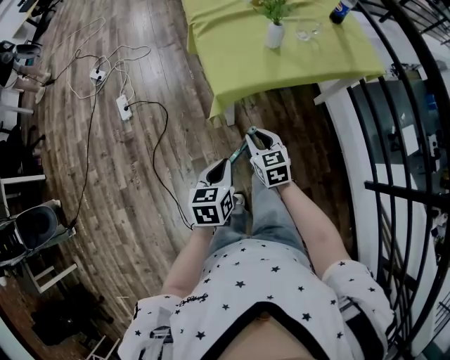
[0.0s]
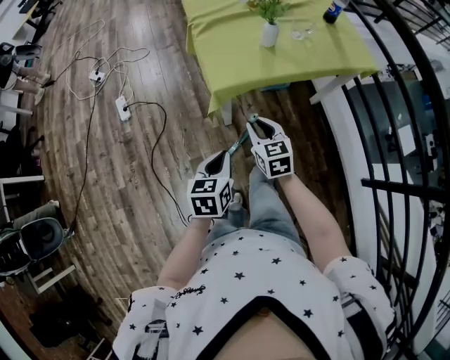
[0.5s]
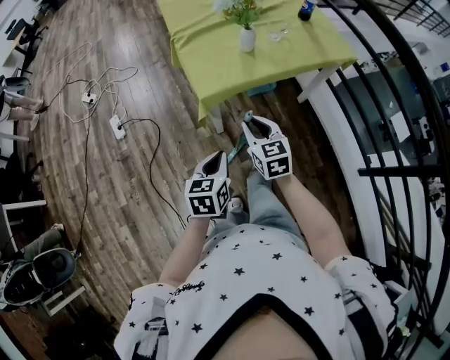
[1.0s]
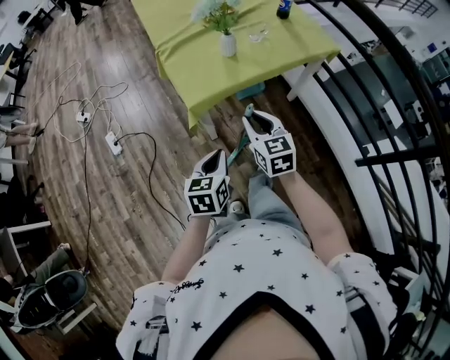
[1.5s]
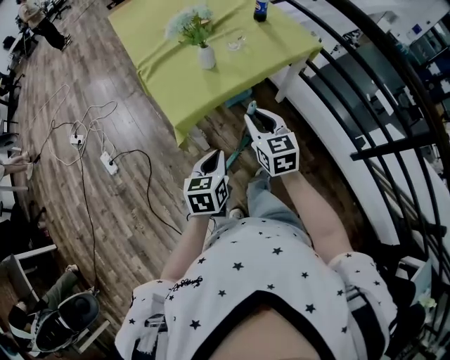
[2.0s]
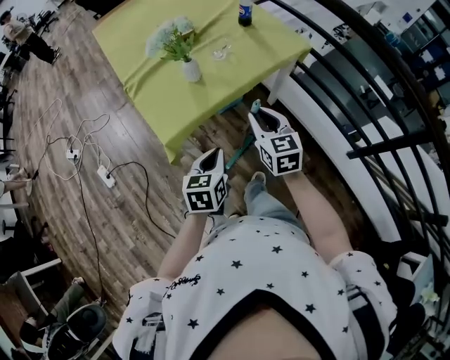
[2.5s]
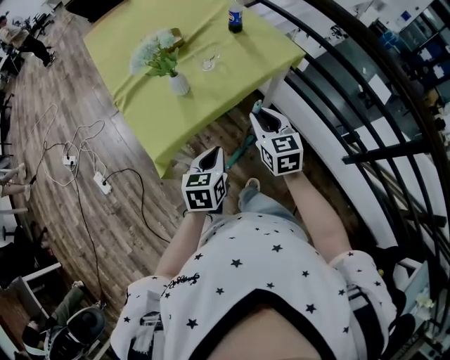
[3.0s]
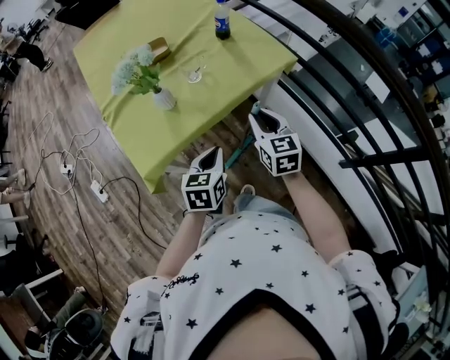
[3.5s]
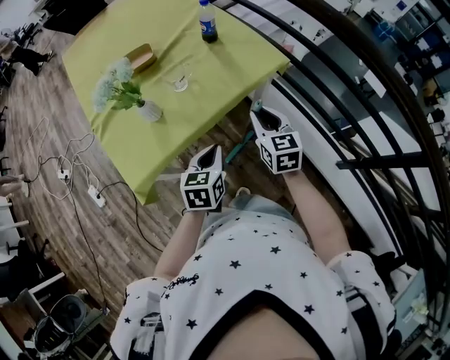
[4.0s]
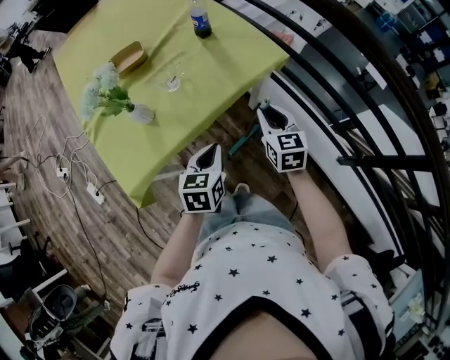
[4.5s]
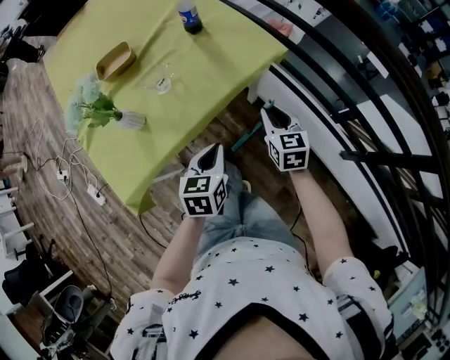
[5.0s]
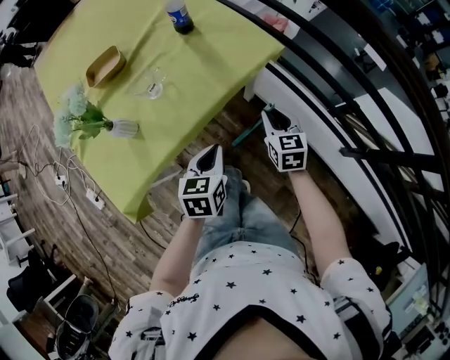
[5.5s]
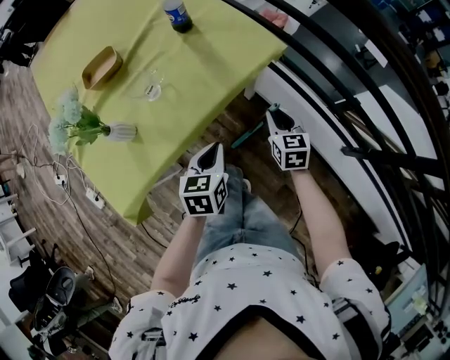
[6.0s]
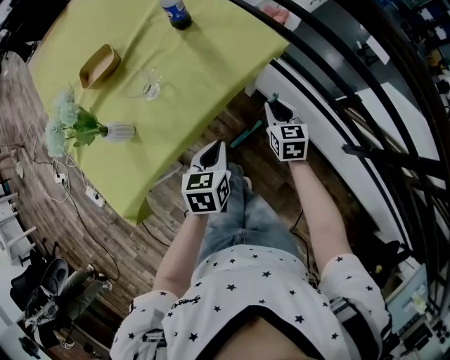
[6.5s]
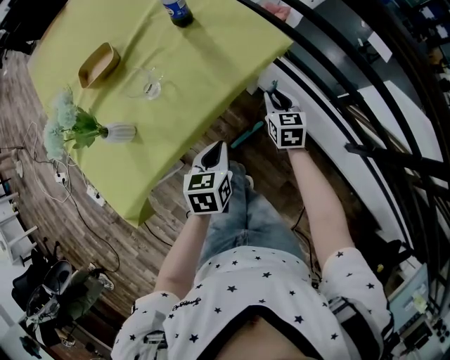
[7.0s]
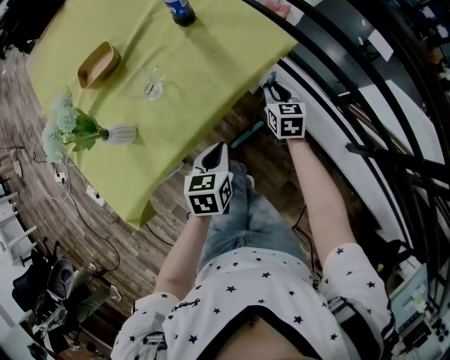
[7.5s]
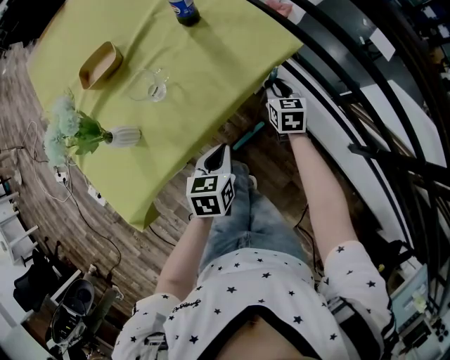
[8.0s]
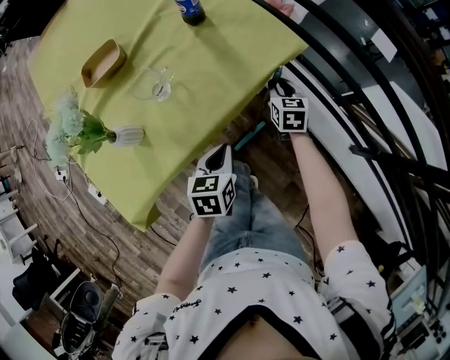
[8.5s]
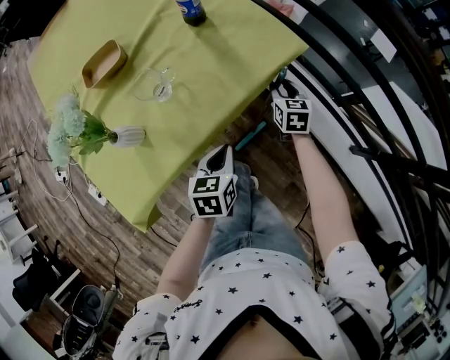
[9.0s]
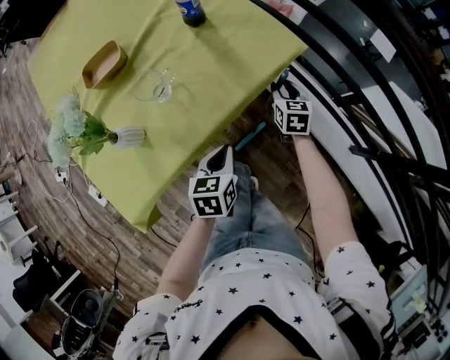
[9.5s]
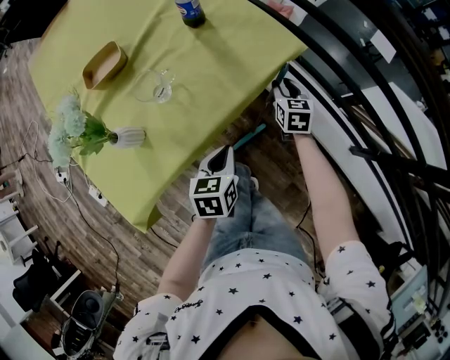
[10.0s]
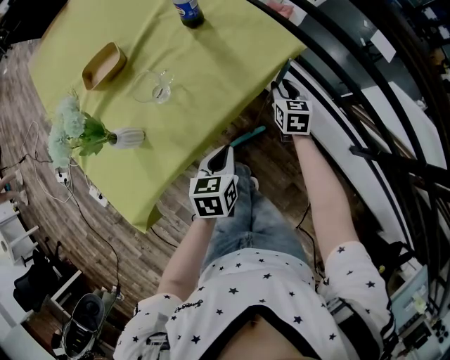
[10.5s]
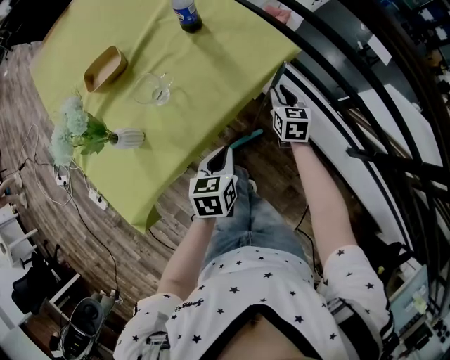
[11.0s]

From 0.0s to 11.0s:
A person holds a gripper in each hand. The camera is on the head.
From 0.0s to 2.0s: The right gripper travels upward and to the right by some 20 cm, and swivels roughly 20 degrees; the left gripper is displaced to the right and upward by some 10 cm.
From 2.0s to 3.5s: Both grippers move forward and to the right, some 20 cm.
From 3.5s to 5.5s: The right gripper heads downward, to the right and forward, covering some 25 cm, while the left gripper goes roughly 15 cm forward, to the right and downward.
From 5.5s to 7.5s: The left gripper changes place by roughly 5 cm. The right gripper shifts roughly 10 cm forward and downward.
From 7.5s to 11.0s: The grippers make only small movements.

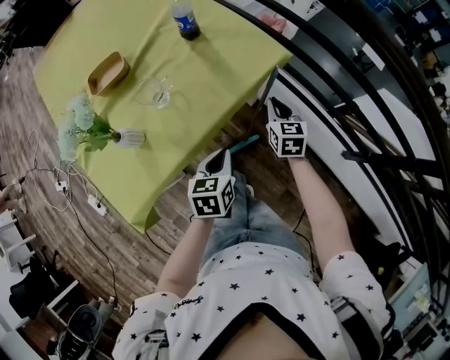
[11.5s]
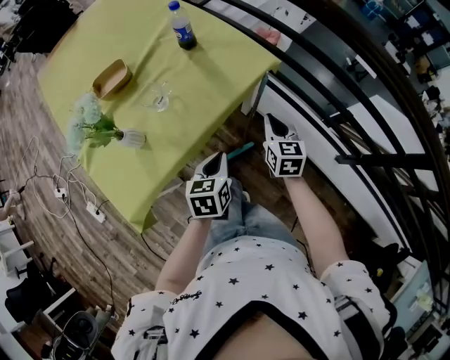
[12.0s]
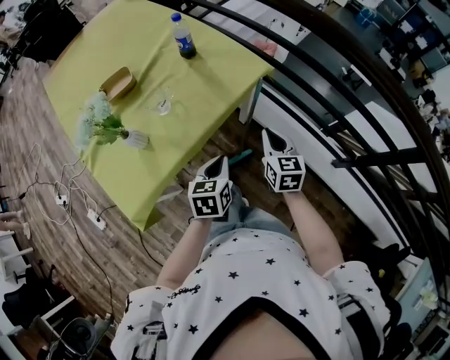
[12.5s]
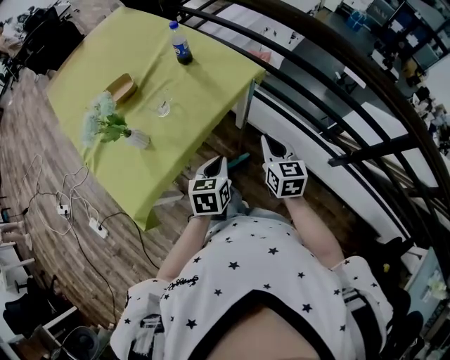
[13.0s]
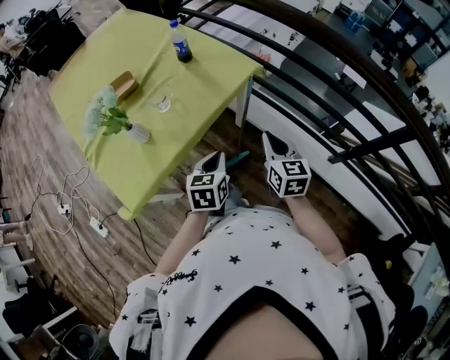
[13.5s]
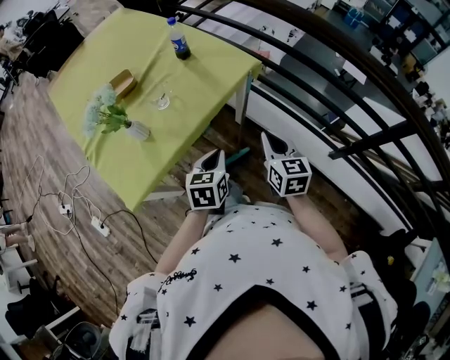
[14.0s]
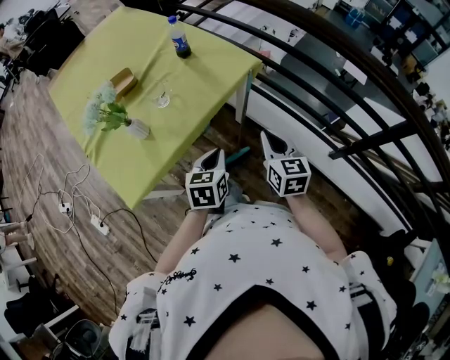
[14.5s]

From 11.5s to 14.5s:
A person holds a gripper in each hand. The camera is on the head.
From 11.5s to 13.0s: The left gripper shifts approximately 10 cm upward and backward. The right gripper travels backward and upward by roughly 20 cm.
From 13.0s to 14.5s: The grippers stay close to where they were, moving slightly.

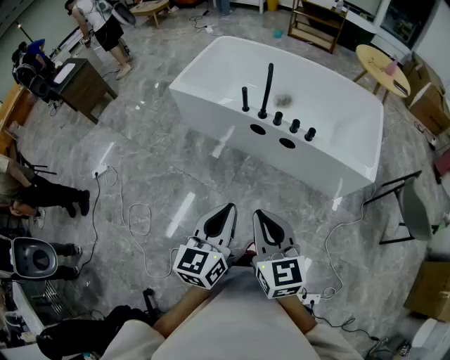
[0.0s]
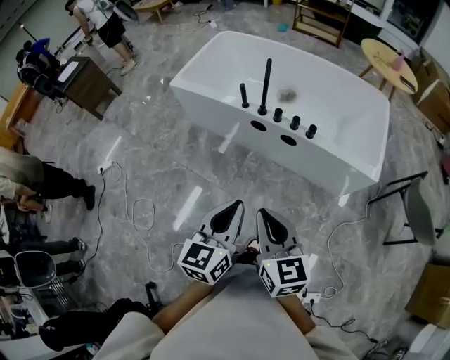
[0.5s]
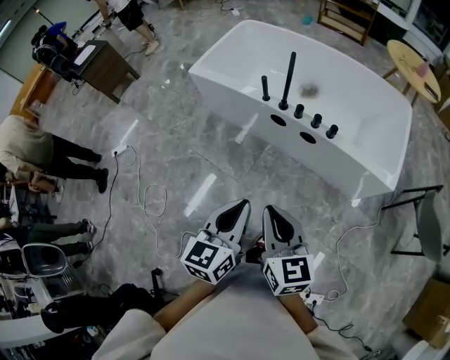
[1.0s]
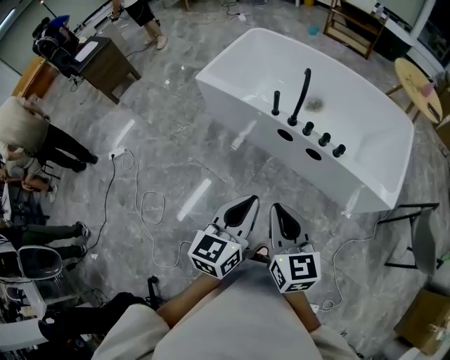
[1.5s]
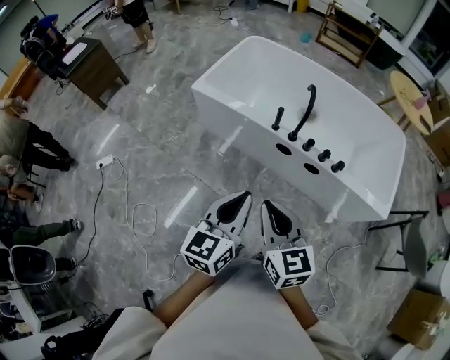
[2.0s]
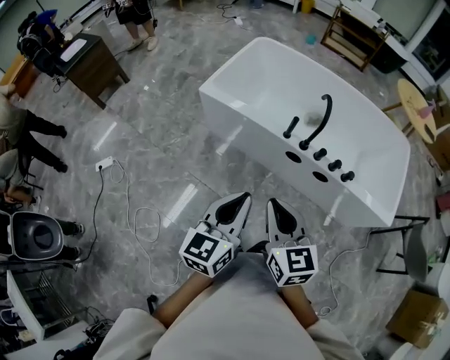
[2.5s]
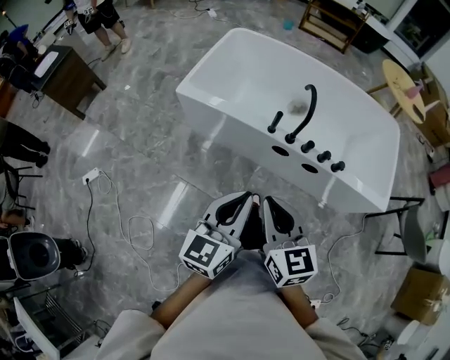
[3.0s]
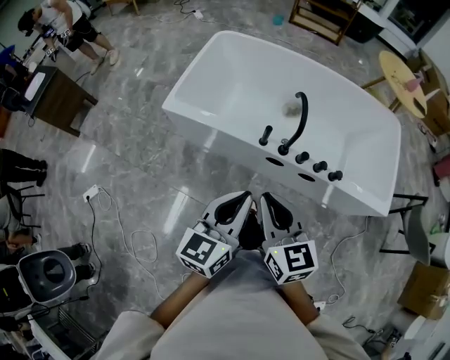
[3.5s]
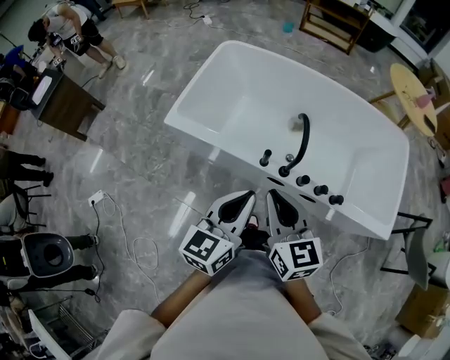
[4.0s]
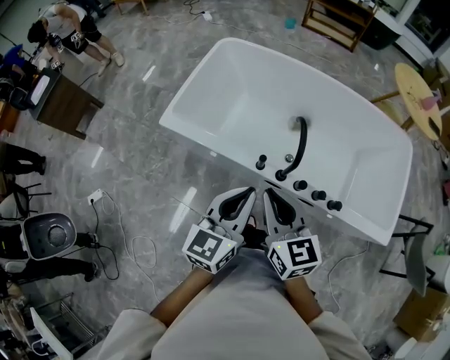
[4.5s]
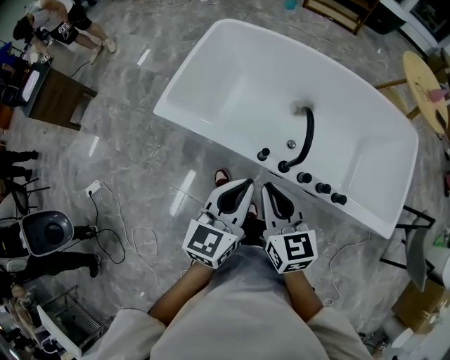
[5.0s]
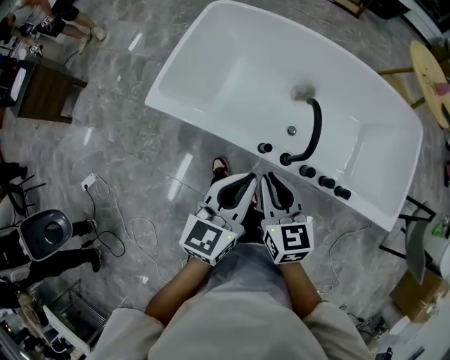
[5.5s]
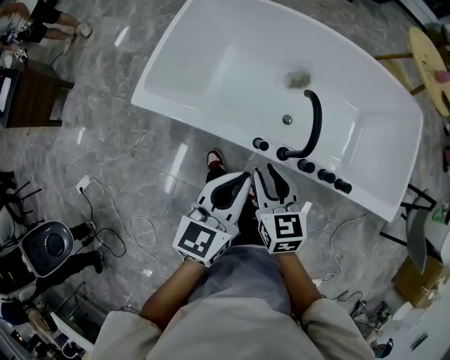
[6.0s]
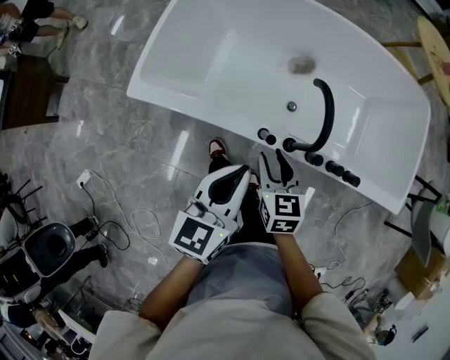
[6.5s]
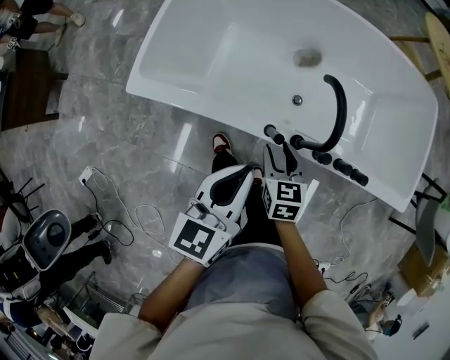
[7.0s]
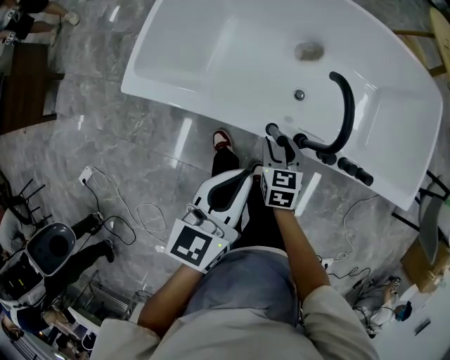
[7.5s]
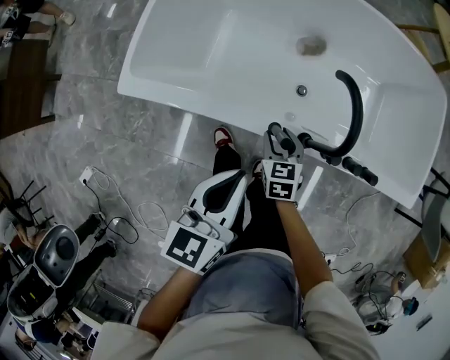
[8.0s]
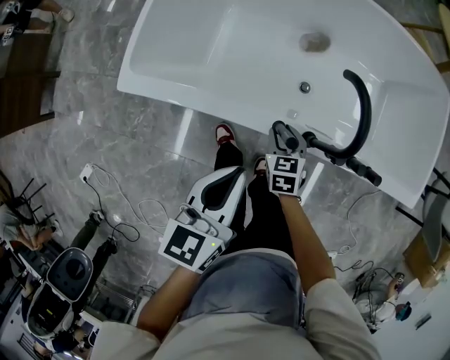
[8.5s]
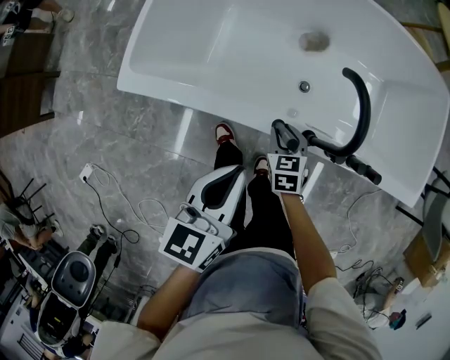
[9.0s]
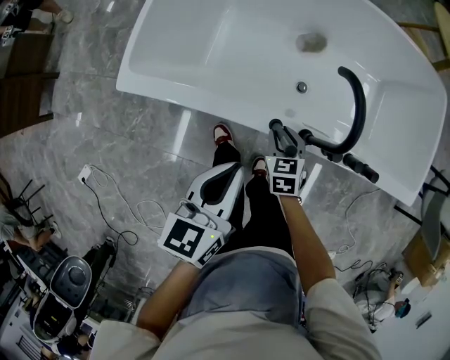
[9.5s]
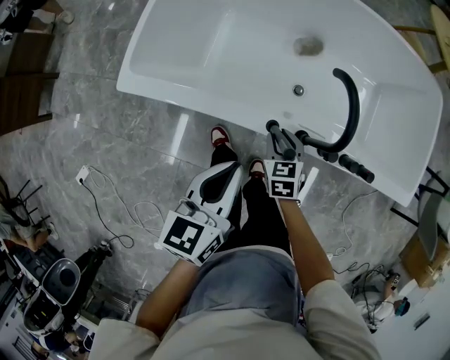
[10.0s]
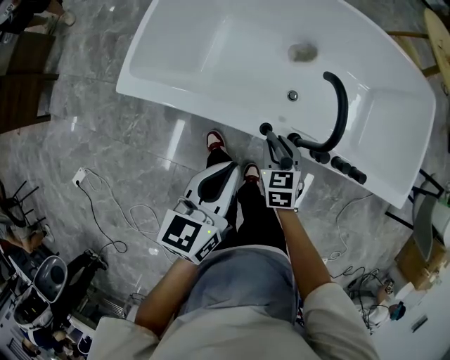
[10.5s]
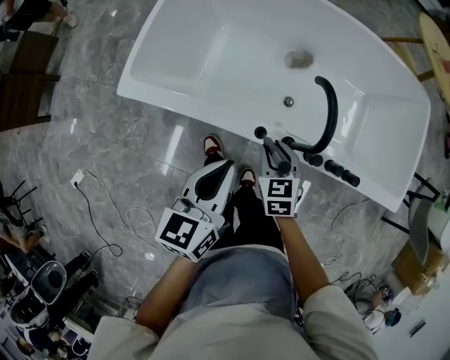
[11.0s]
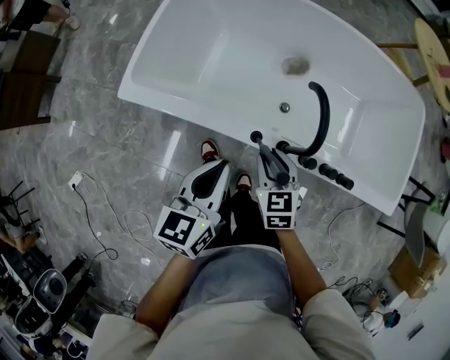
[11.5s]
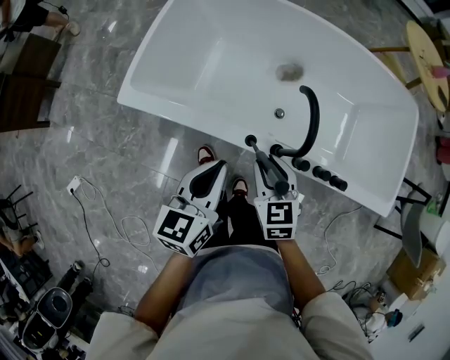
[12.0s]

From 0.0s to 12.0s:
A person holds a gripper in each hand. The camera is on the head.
From 0.0s to 2.0s: Both grippers travel together forward and to the left, approximately 20 cm.
From 2.0s to 4.0s: Both grippers move forward, some 30 cm.
From 4.0s to 6.0s: The right gripper travels downward and forward by approximately 20 cm, and opens up; the left gripper goes some 15 cm forward and downward.
From 6.0s to 8.0s: The right gripper shifts roughly 20 cm downward, and turns by approximately 20 degrees. The left gripper heads downward and to the left, covering some 10 cm.
From 8.0s to 10.0s: There are only small adjustments of the grippers.
From 10.0s to 12.0s: The right gripper shifts approximately 15 cm upward.

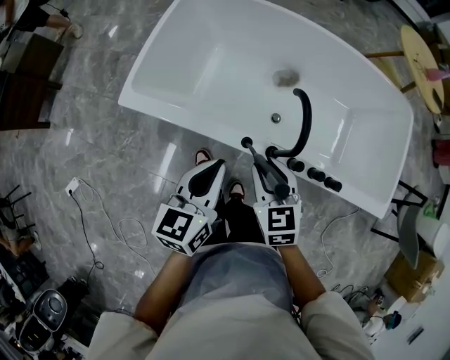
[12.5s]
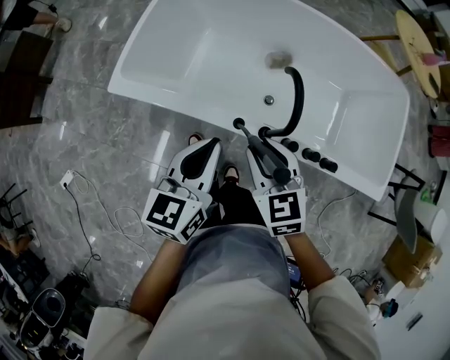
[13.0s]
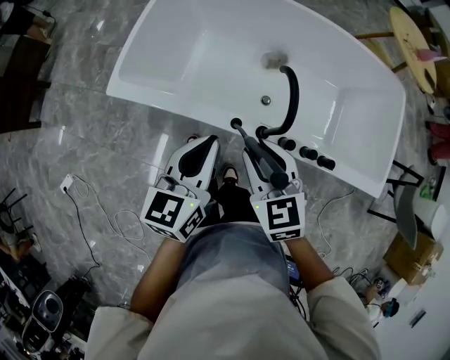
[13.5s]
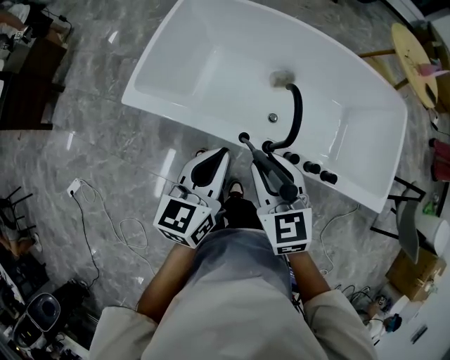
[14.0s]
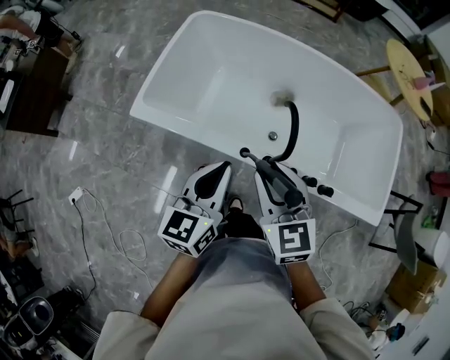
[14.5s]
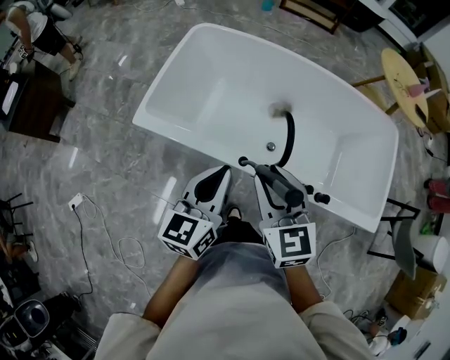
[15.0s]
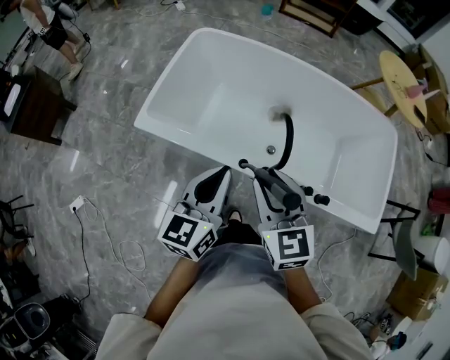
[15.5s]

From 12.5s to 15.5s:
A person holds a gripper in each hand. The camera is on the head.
From 12.5s to 14.0s: The right gripper is displaced upward by approximately 10 cm; the left gripper shifts by about 5 cm.
From 14.0s to 15.5s: Both grippers travel together upward, roughly 5 cm.
